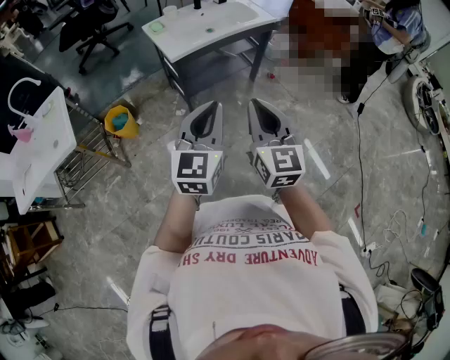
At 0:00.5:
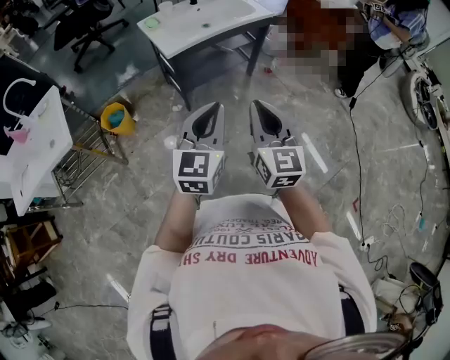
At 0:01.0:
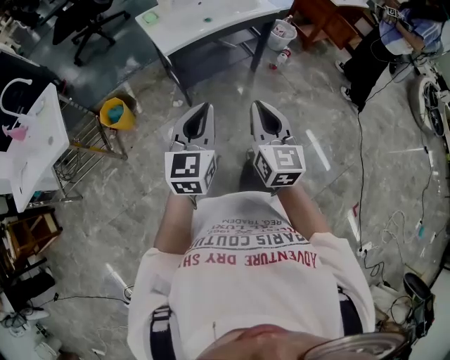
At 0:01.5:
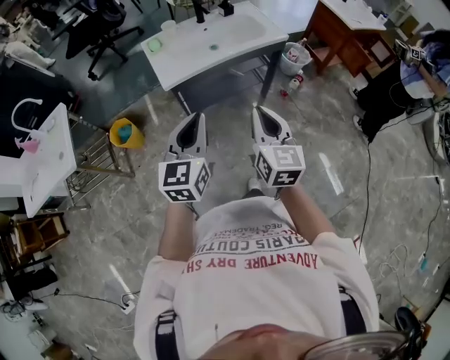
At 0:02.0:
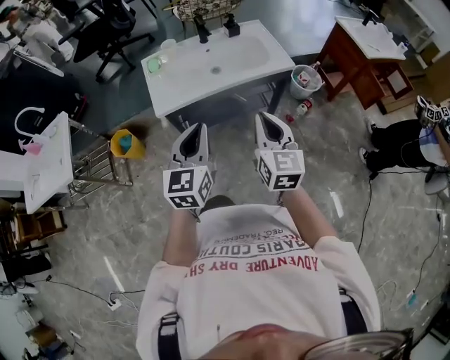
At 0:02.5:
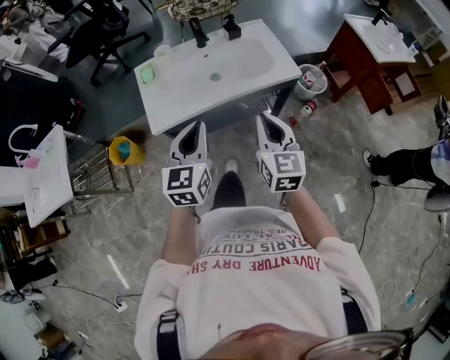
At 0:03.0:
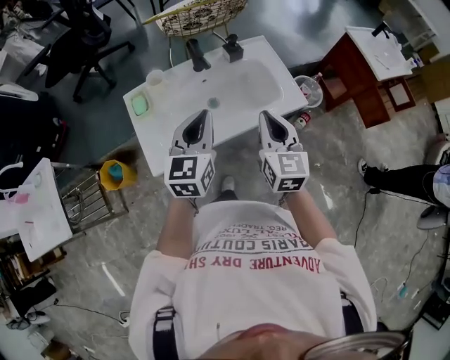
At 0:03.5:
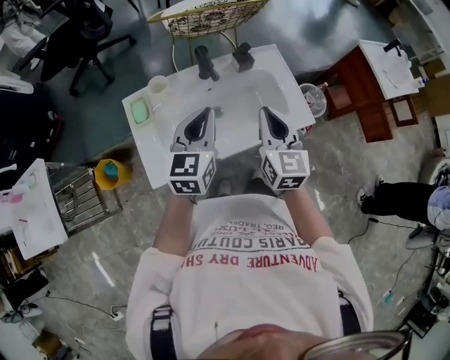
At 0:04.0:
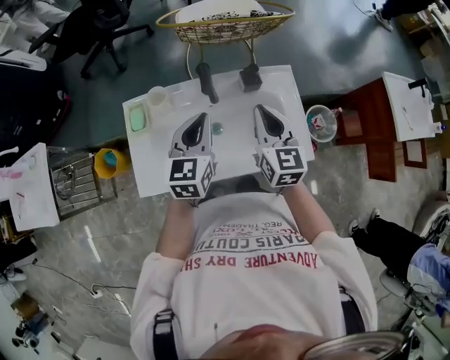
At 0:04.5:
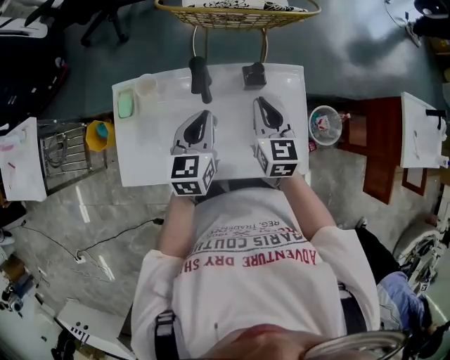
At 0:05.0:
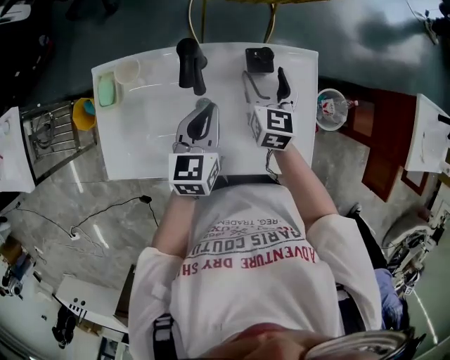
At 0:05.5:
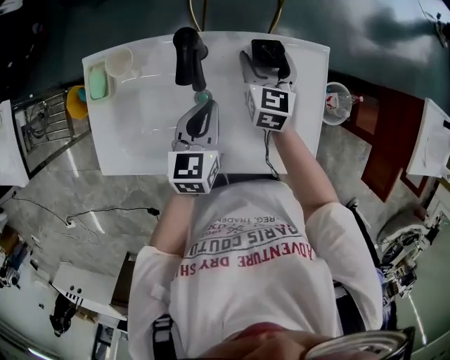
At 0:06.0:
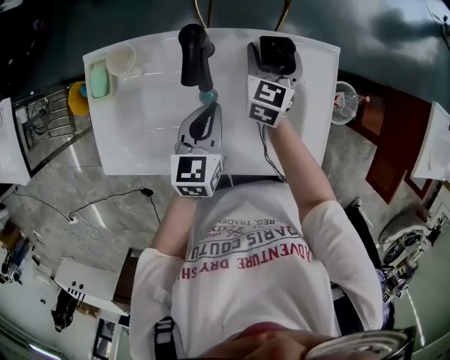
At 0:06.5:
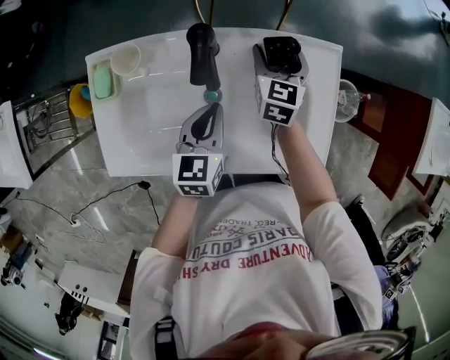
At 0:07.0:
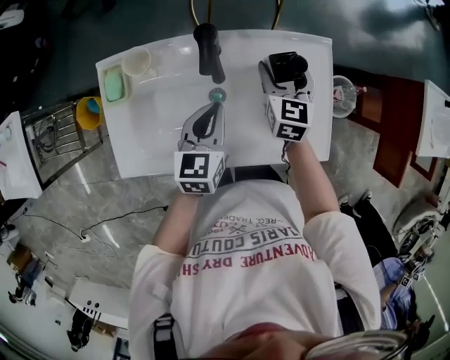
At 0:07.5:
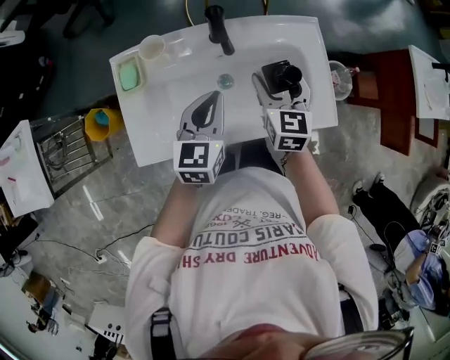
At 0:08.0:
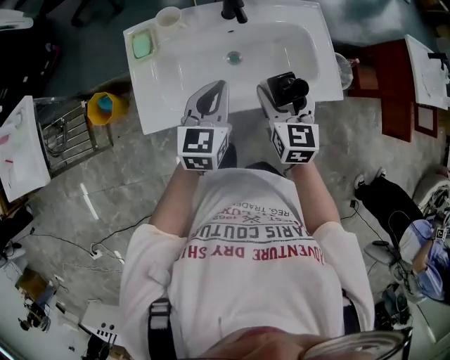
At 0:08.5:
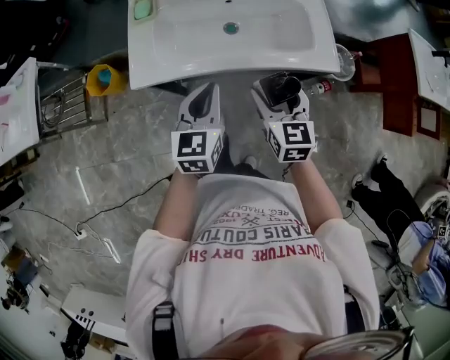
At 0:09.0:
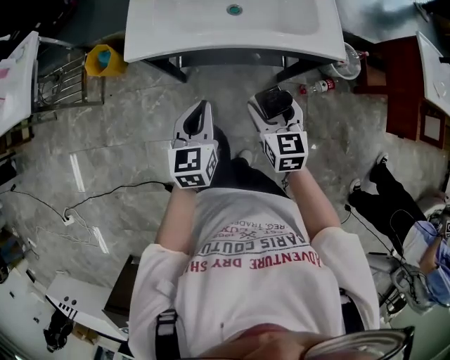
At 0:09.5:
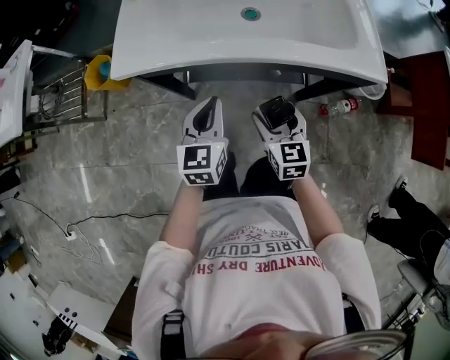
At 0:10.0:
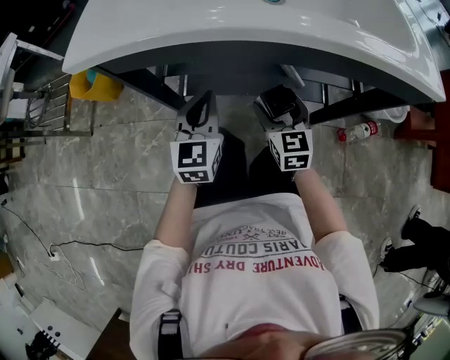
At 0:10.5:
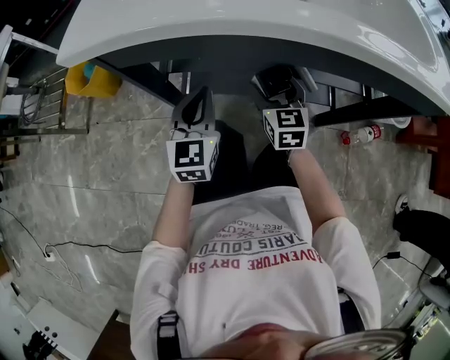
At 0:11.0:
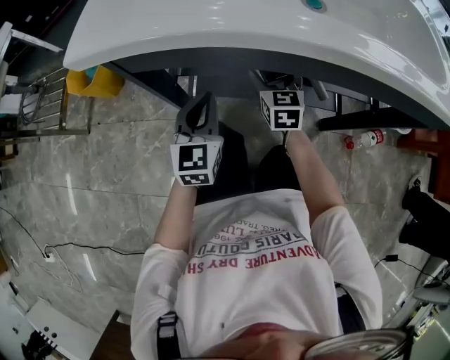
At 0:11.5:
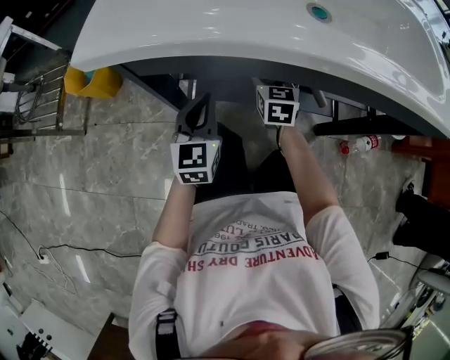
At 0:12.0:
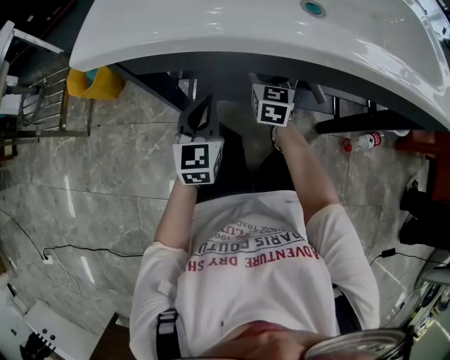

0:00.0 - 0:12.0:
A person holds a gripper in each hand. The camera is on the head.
0:00.0 - 0:02.0: The left gripper moves forward, about 30 cm, and changes its angle by roughly 20 degrees, while the right gripper travels forward and to the right by approximately 40 cm.
0:02.0 - 0:04.0: Both grippers are carried forward, roughly 50 cm.
0:04.0 - 0:06.0: The right gripper travels downward and forward by roughly 30 cm, and opens its fingers; the left gripper goes some 20 cm downward.
0:06.0 - 0:08.0: The left gripper goes about 20 cm backward, upward and to the left. The right gripper travels backward and upward by about 35 cm.
0:08.0 - 0:10.0: The grippers both shift downward by about 40 cm. The left gripper changes its angle by some 20 degrees.
0:10.0 - 0:12.0: The left gripper goes roughly 5 cm to the left, while the right gripper is displaced forward and to the left by some 15 cm.

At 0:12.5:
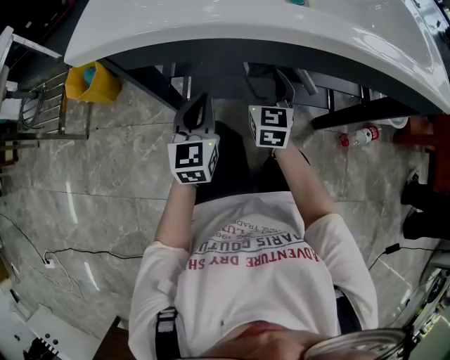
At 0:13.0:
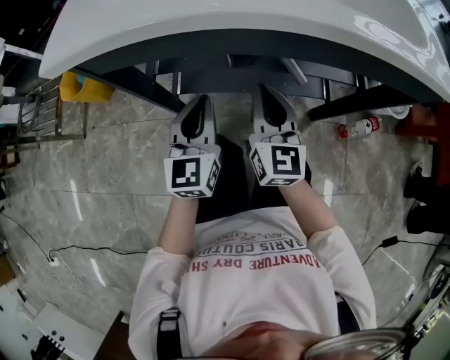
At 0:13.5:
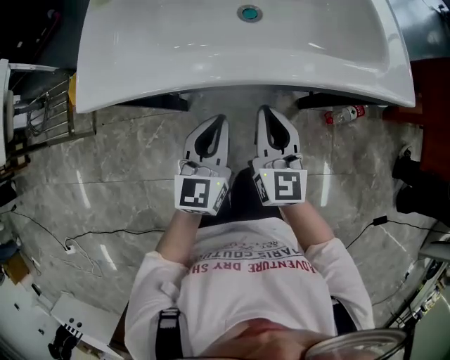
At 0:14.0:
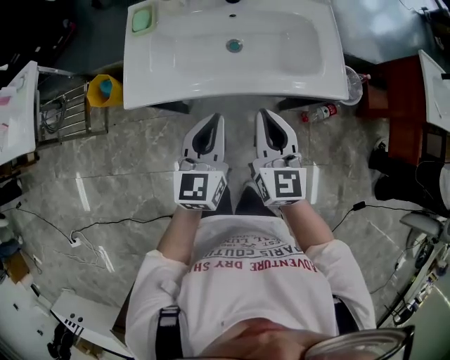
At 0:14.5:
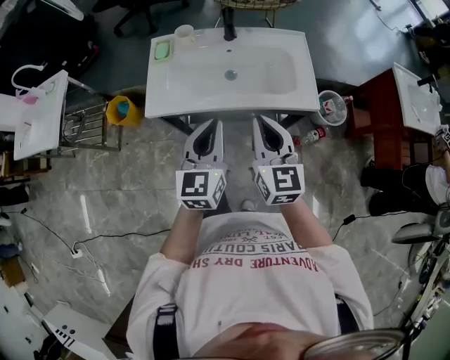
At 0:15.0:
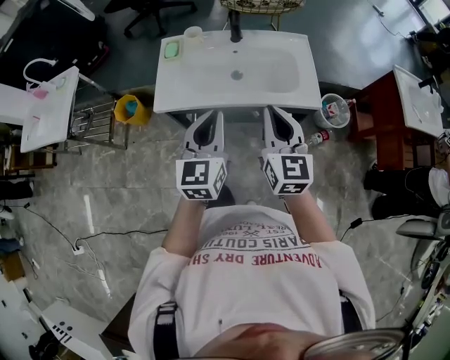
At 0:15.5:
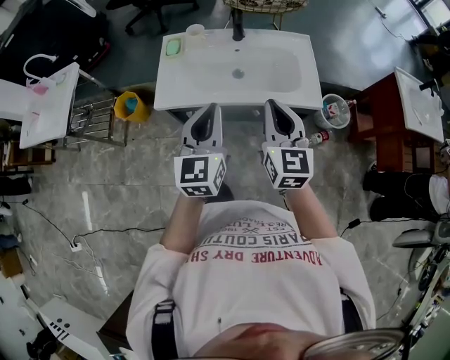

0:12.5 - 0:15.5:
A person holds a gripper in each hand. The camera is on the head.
0:12.5 - 0:14.0: The grippers both shift upward by about 40 cm. The right gripper closes its fingers.
0:14.0 - 0:15.5: The grippers both shift upward by approximately 20 cm.

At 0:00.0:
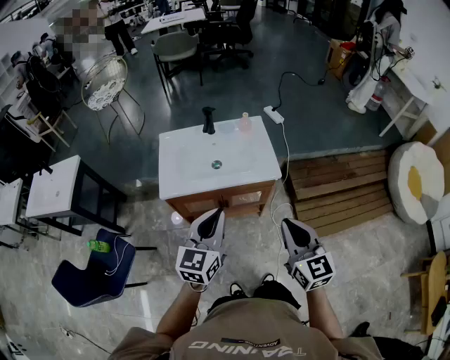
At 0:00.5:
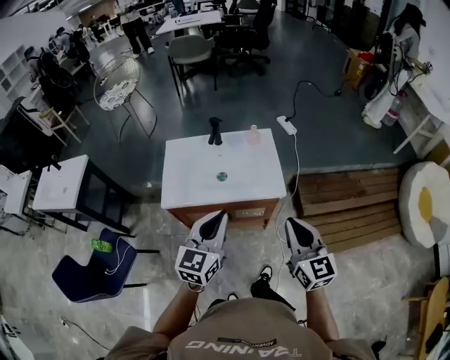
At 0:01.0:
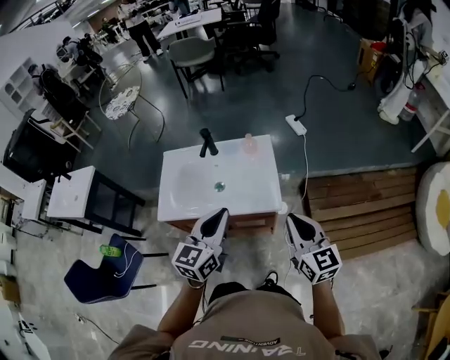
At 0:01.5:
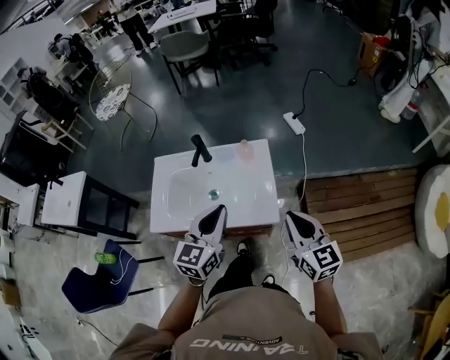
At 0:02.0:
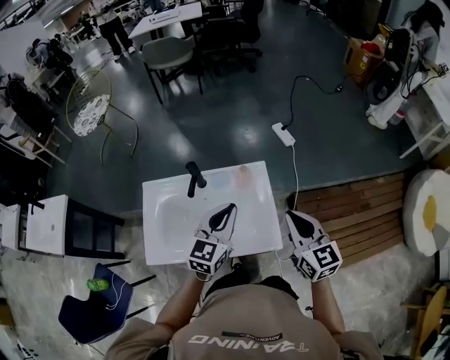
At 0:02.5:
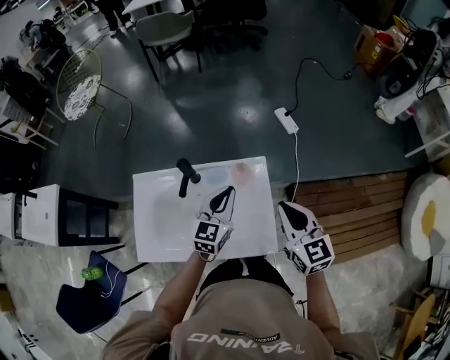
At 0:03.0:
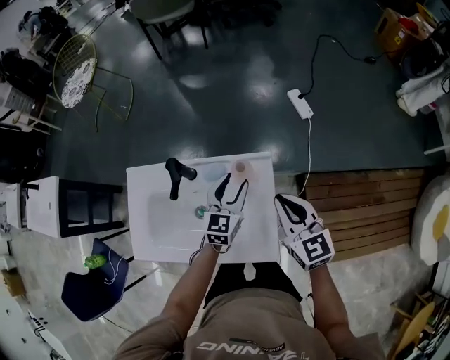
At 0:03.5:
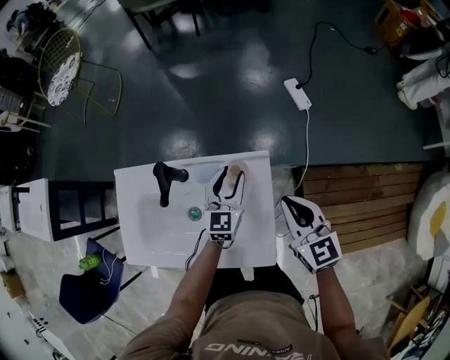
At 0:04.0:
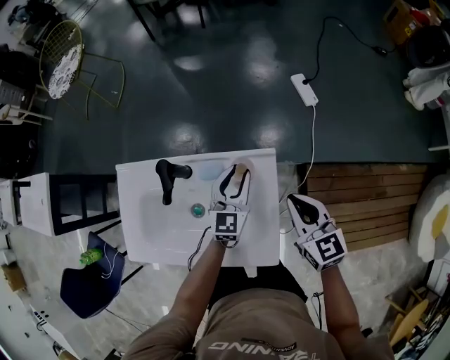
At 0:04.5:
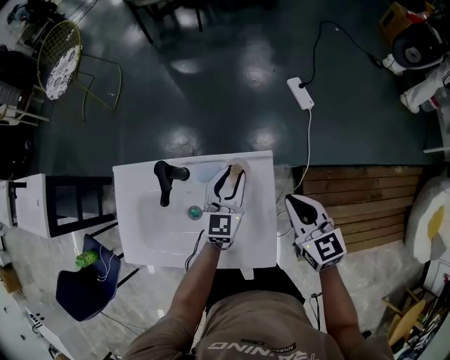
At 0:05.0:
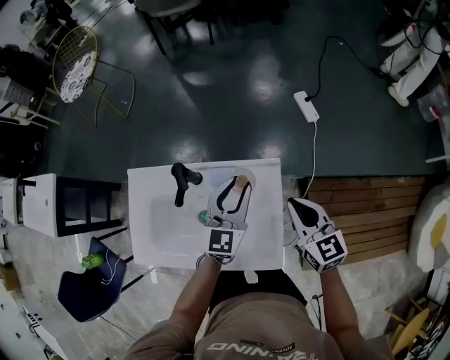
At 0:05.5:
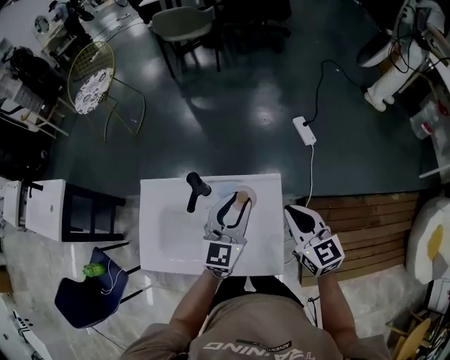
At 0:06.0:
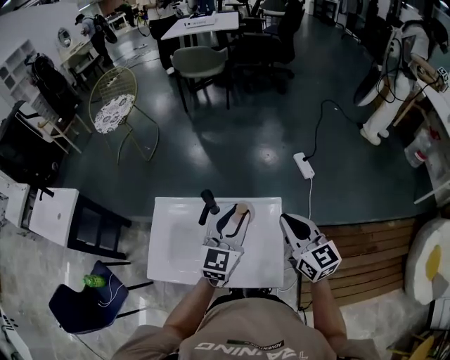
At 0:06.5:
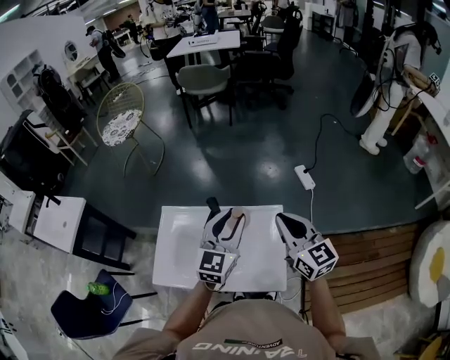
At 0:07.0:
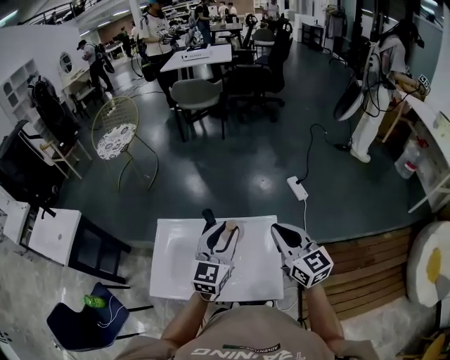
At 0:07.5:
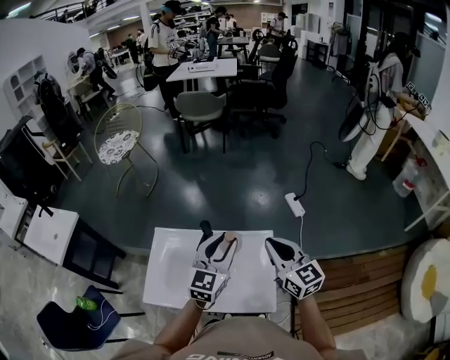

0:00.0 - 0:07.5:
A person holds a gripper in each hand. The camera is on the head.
0:00.0 - 0:02.0: Both grippers travel together forward, approximately 40 cm.
0:02.0 - 0:04.0: The two grippers go about 25 cm forward and downward. The left gripper opens.
0:04.0 - 0:05.5: The right gripper is displaced upward by approximately 10 cm; the left gripper heads upward, covering roughly 15 cm.
0:05.5 - 0:07.5: The left gripper goes roughly 10 cm upward and backward, while the right gripper is displaced upward by roughly 10 cm.

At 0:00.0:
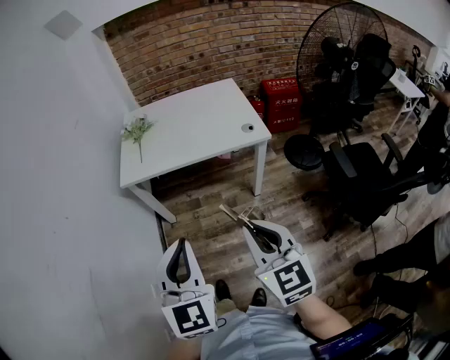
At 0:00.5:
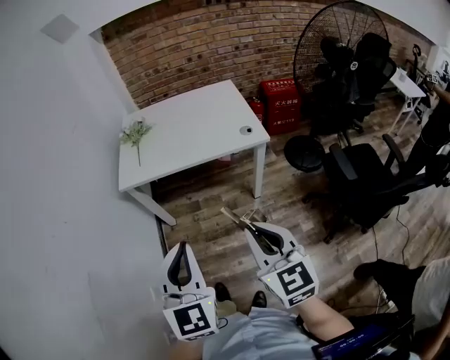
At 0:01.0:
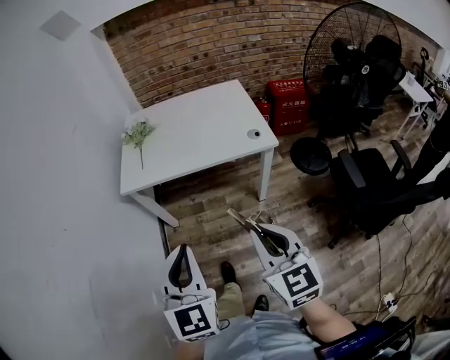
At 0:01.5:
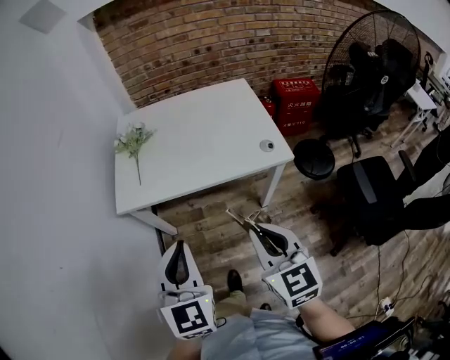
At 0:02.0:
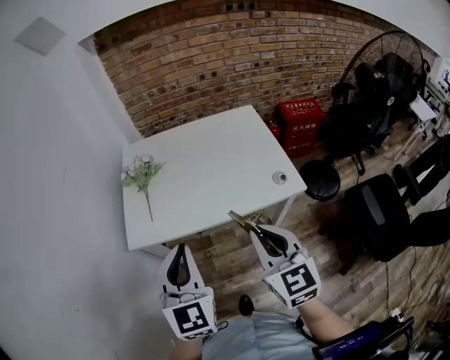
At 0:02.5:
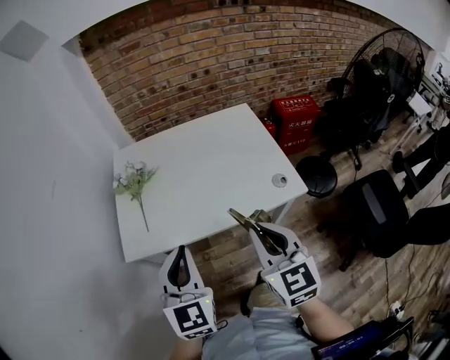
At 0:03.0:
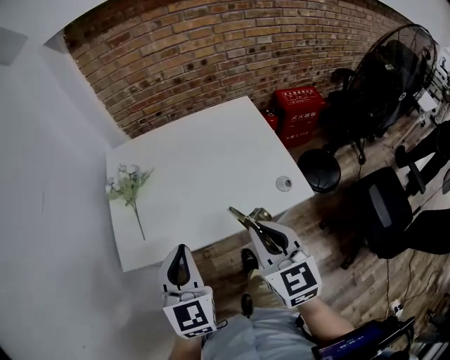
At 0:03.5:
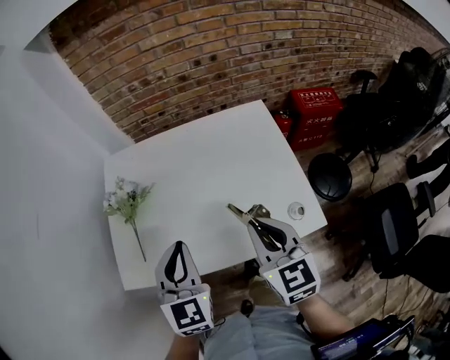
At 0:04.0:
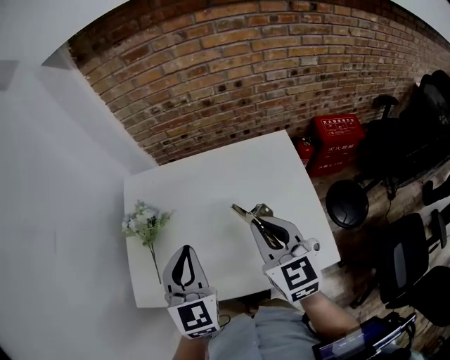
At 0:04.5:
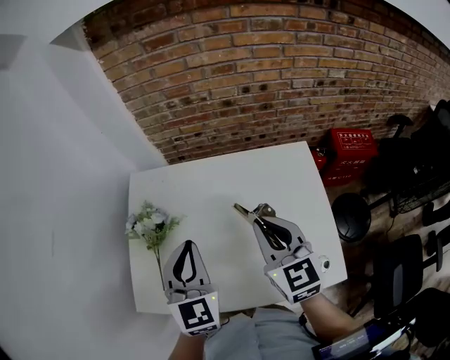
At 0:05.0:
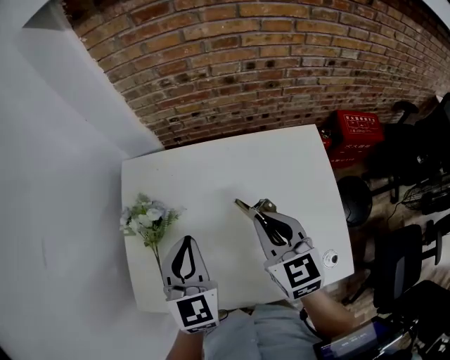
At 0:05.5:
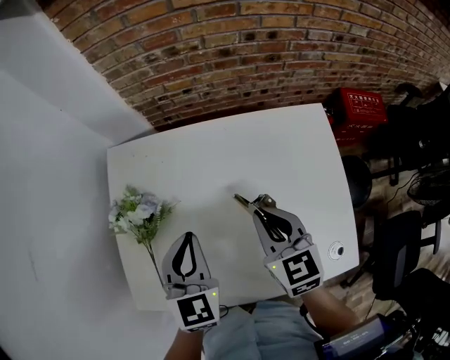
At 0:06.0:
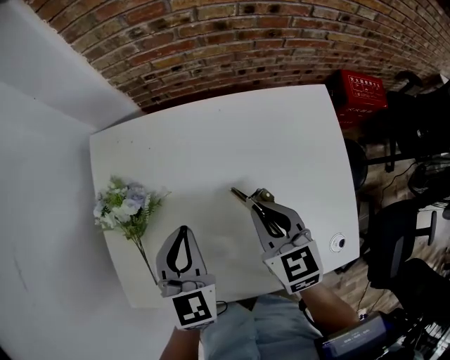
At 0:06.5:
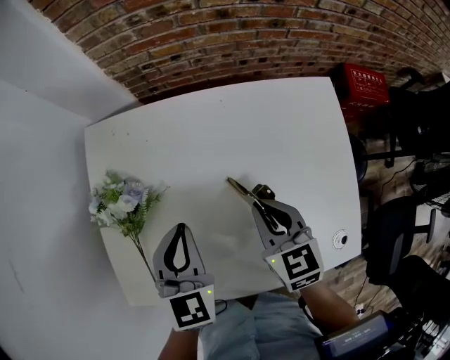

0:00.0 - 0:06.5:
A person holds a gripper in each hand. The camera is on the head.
0:00.0 - 0:02.0: Both grippers travel together forward, roughly 30 cm.
0:02.0 - 0:04.5: The grippers both shift forward by roughly 40 cm.
0:04.5 - 0:06.5: Both grippers move downward, some 15 cm. The right gripper rotates about 20 degrees.
